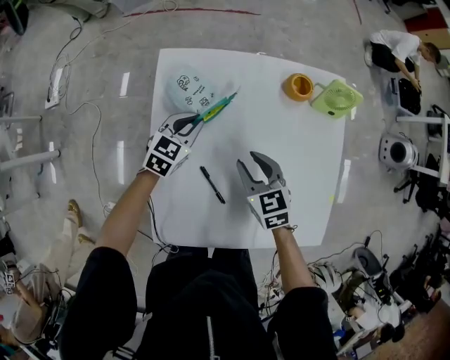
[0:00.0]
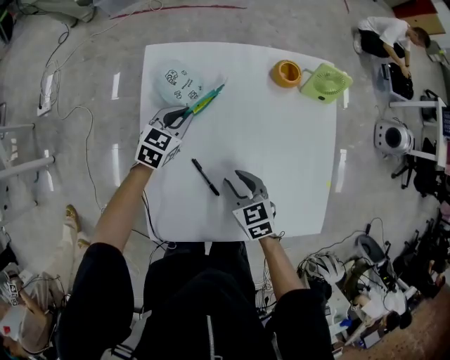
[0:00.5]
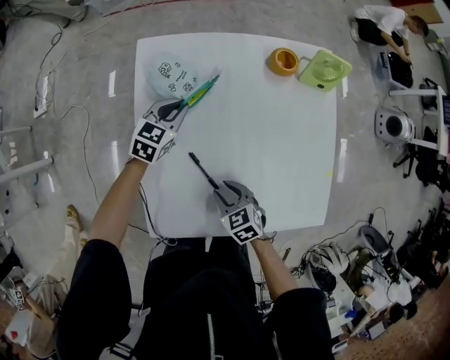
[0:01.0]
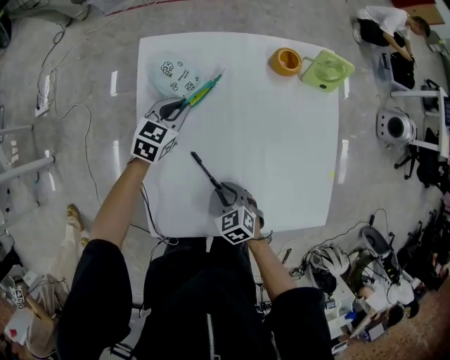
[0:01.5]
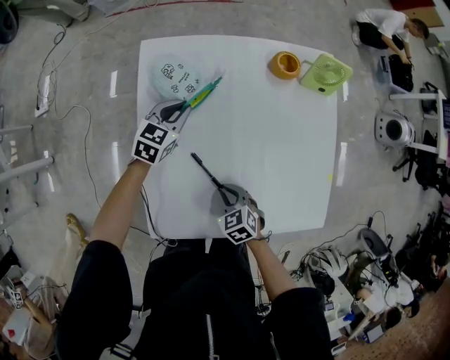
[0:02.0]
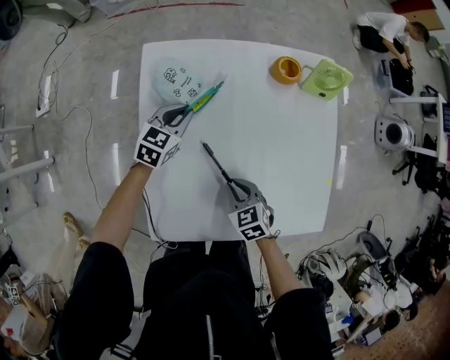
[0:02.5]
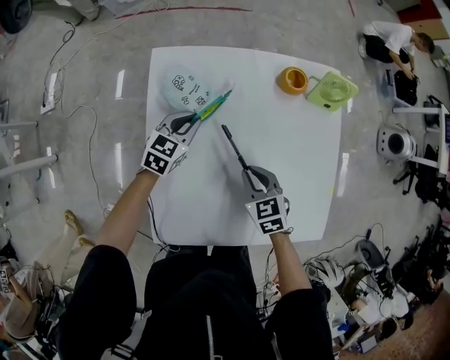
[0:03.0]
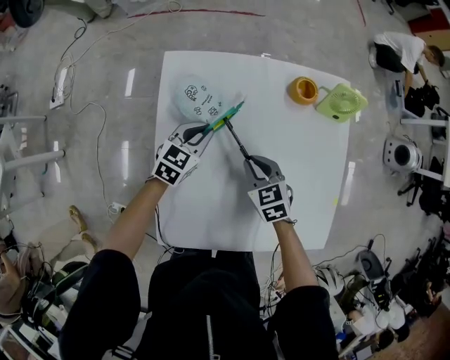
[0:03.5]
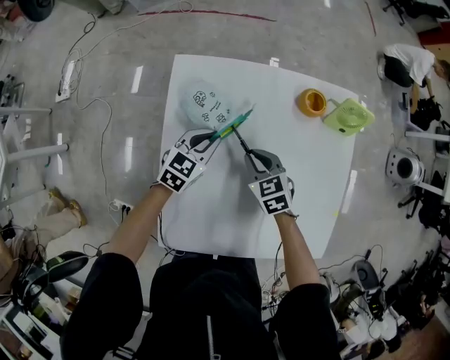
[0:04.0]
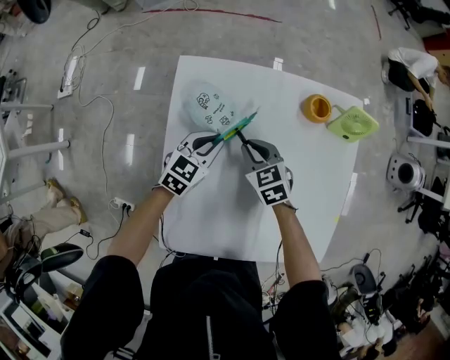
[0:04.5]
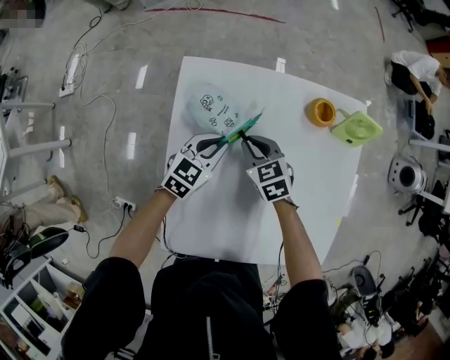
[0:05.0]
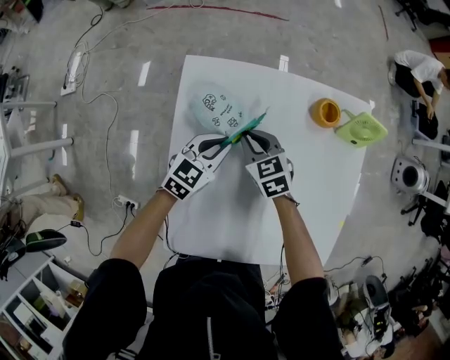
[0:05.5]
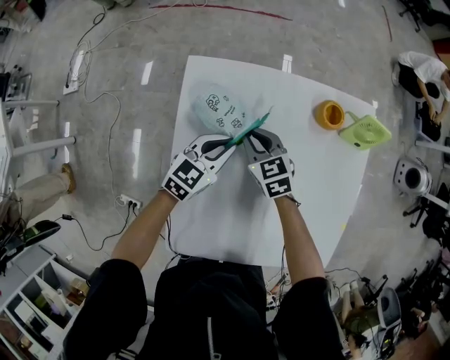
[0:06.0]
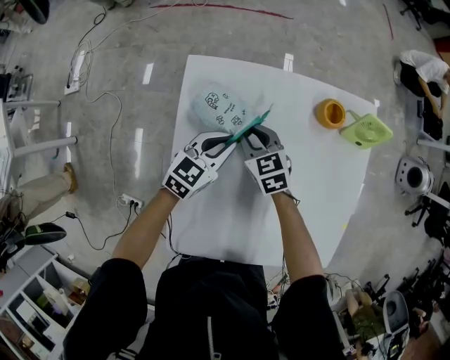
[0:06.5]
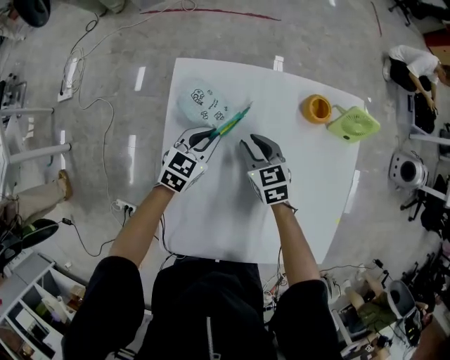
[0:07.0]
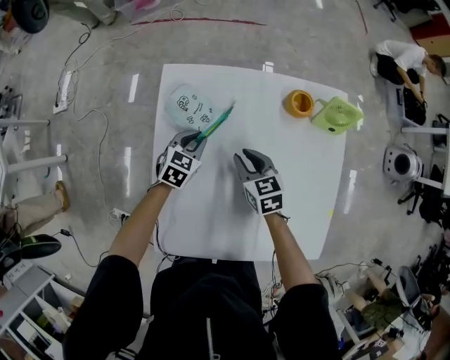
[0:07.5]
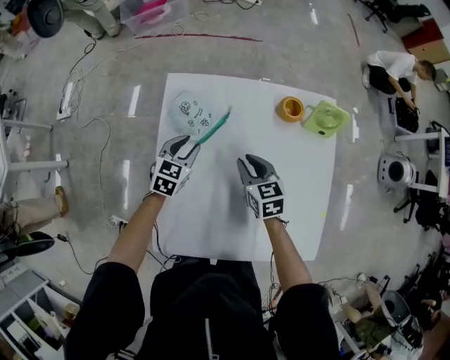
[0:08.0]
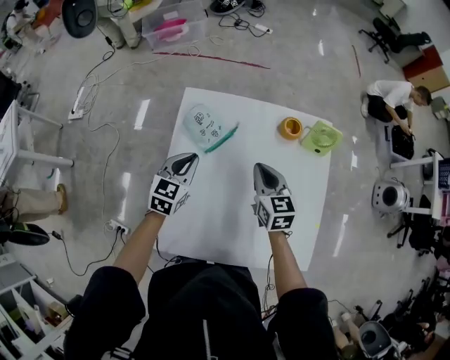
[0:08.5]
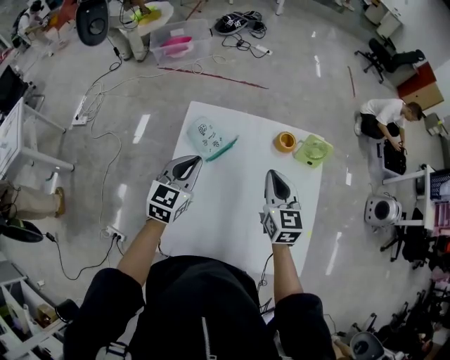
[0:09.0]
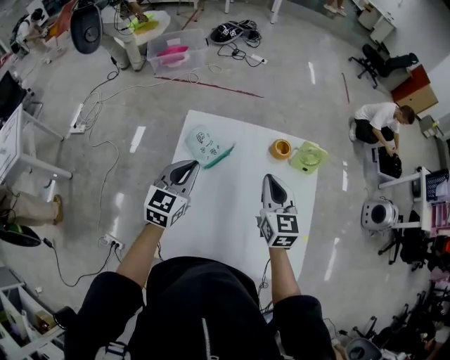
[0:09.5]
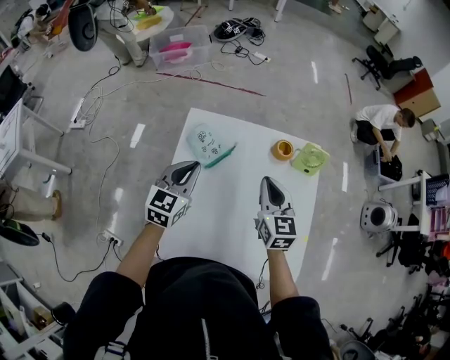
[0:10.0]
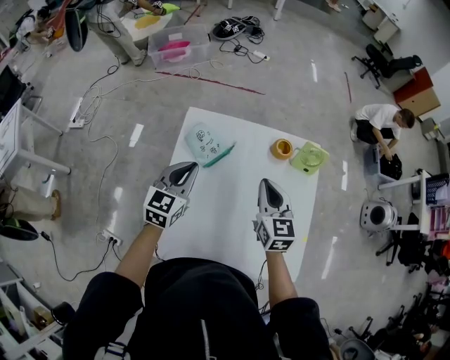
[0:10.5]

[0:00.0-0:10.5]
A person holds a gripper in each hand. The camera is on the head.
0.0 to 2.0 s: The right gripper heads backward and downward, covering approximately 20 cm, and closes up.
2.0 to 4.0 s: The right gripper heads forward, covering approximately 20 cm.
4.0 to 6.5 s: The right gripper goes some 10 cm forward and to the left.
6.5 to 8.5 s: The right gripper travels upward, to the right and backward by approximately 20 cm, turns by some 20 degrees, and closes its fingers, while the left gripper is displaced upward and backward by approximately 10 cm, rotates about 20 degrees, and opens and closes again.
8.5 to 10.5 s: Both grippers travel together upward, approximately 10 cm.

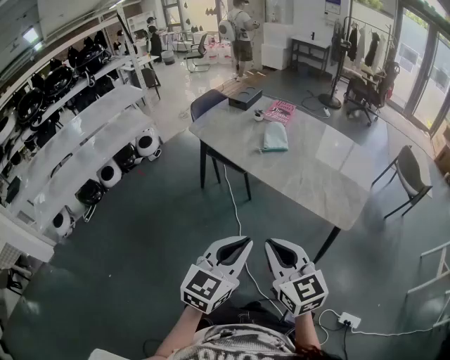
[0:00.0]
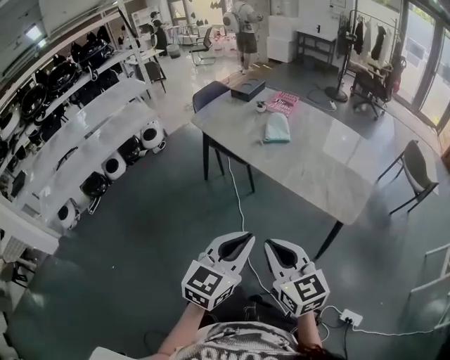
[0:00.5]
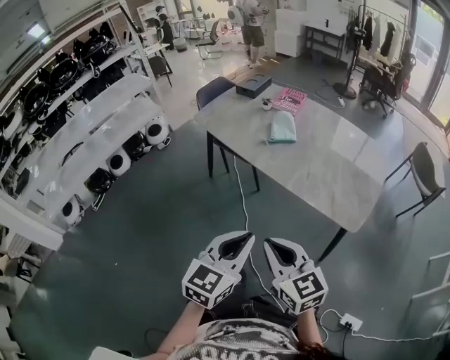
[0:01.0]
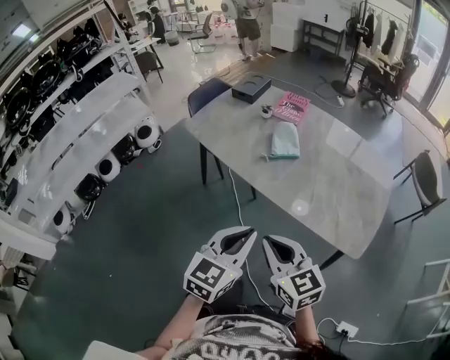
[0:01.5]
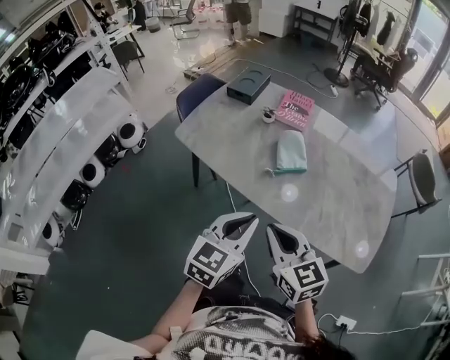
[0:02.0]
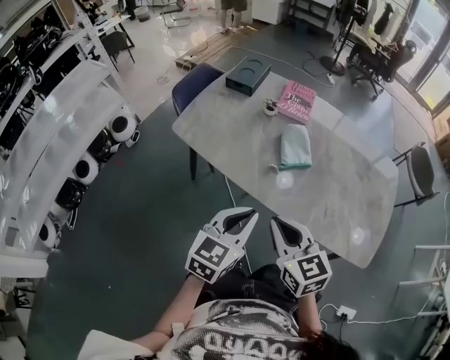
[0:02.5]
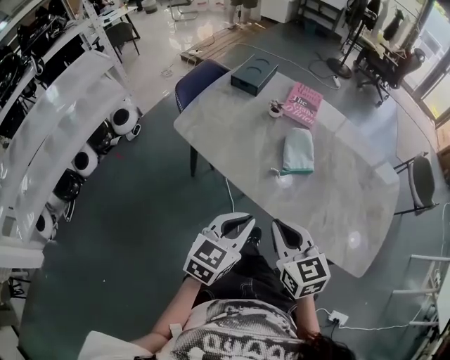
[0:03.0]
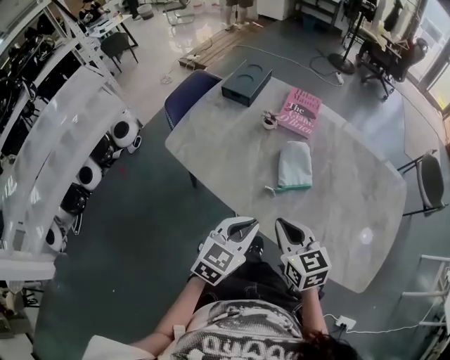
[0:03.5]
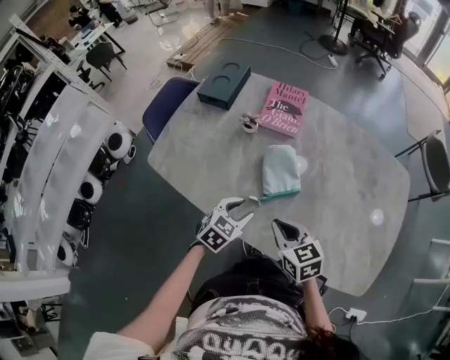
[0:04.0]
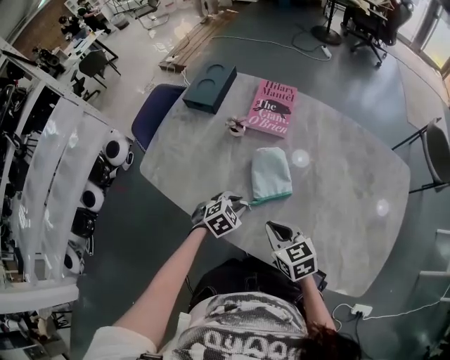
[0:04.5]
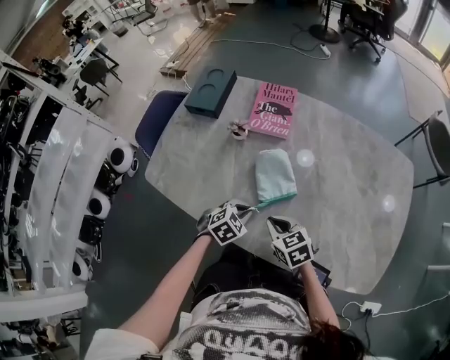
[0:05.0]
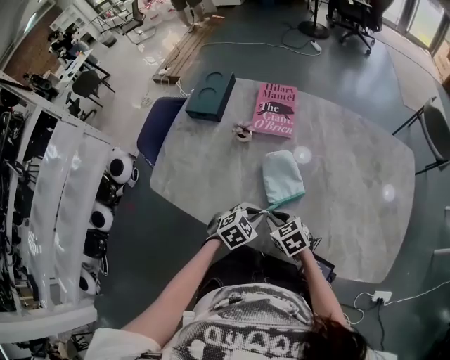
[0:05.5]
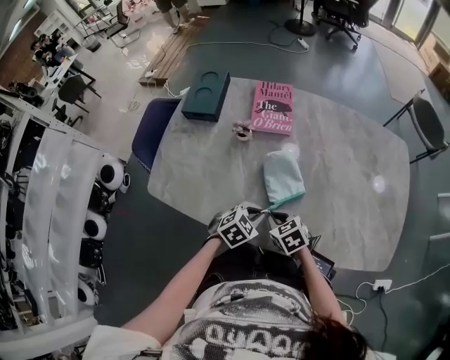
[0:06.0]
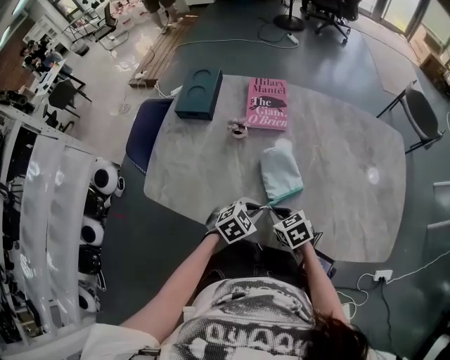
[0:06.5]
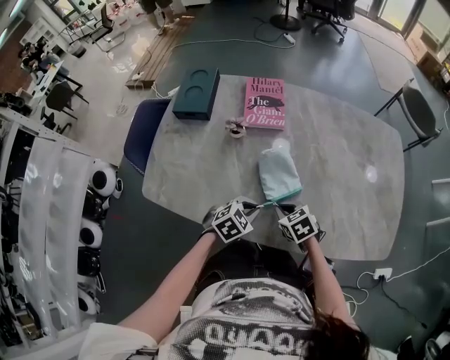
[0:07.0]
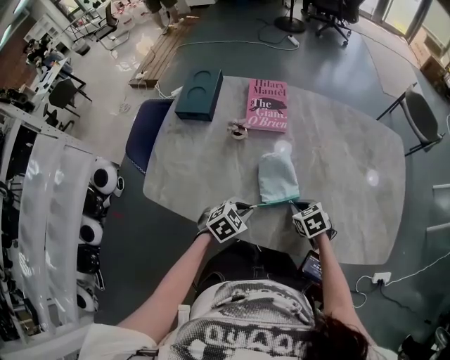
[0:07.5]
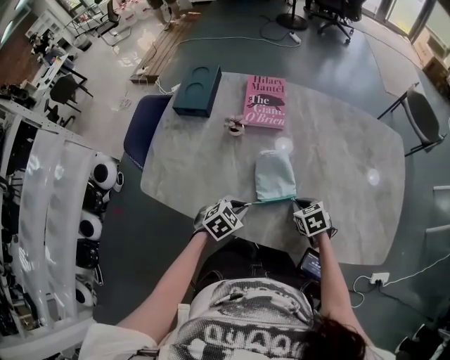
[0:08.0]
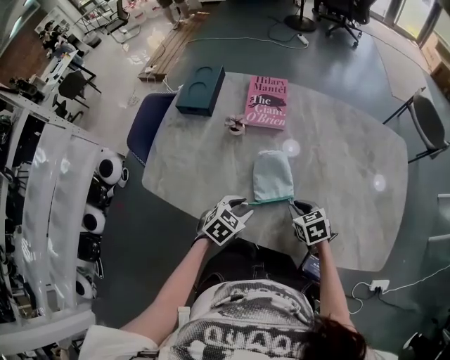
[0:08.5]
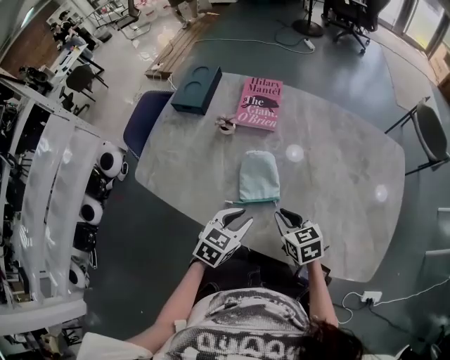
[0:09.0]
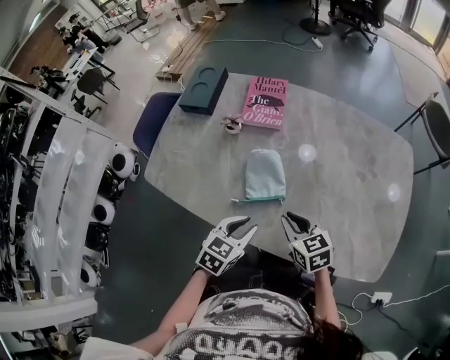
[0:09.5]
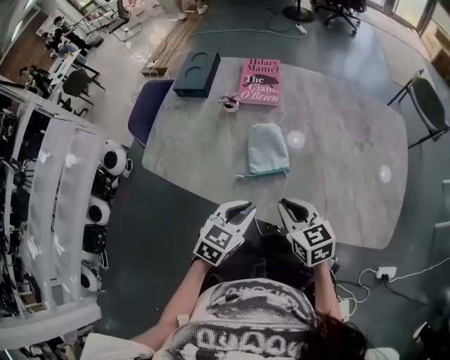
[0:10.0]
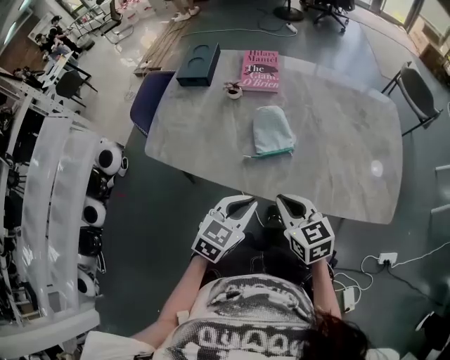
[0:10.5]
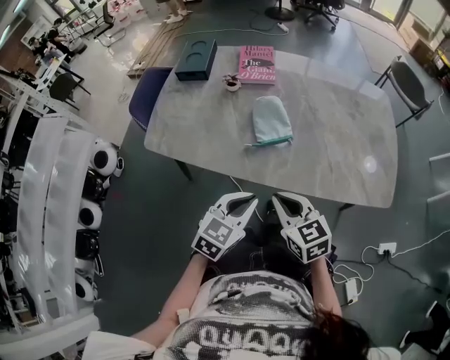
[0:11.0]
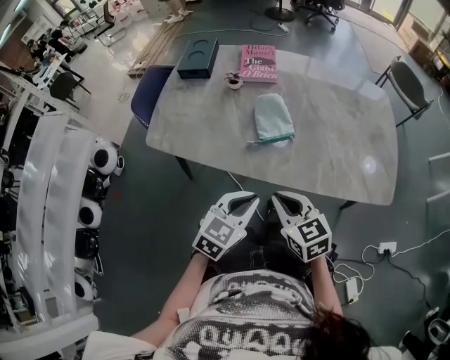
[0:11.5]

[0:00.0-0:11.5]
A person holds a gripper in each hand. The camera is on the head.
0.0 to 2.0 s: The two grippers go approximately 35 cm forward.
2.0 to 4.0 s: Both grippers move forward and downward, roughly 25 cm. The left gripper rotates roughly 30 degrees, and opens.
4.0 to 6.0 s: The right gripper travels downward and to the left by approximately 10 cm, while the left gripper swivels some 30 degrees, and closes up.
6.0 to 7.5 s: The right gripper moves to the right, some 10 cm.
7.5 to 9.5 s: The left gripper travels upward, to the right and backward by approximately 15 cm, turns by roughly 30 degrees, and opens up; the right gripper travels upward by approximately 10 cm, and turns by about 30 degrees.
9.5 to 11.5 s: The right gripper is displaced backward and to the left by roughly 20 cm, while the left gripper moves backward, to the left and upward, approximately 15 cm, and closes its fingers.

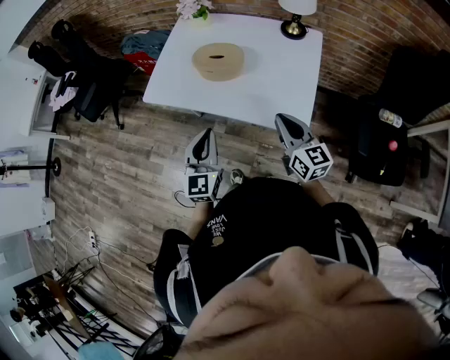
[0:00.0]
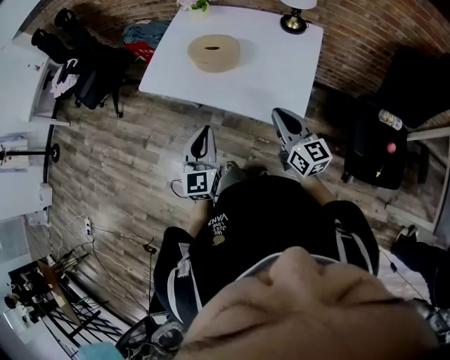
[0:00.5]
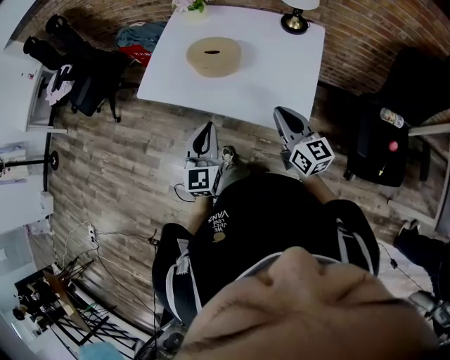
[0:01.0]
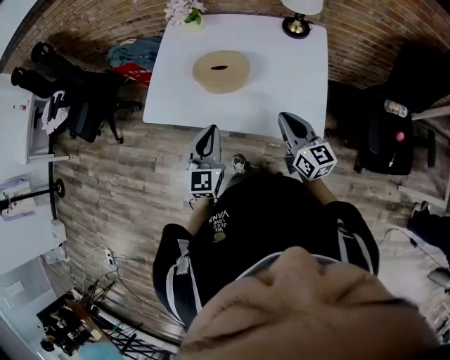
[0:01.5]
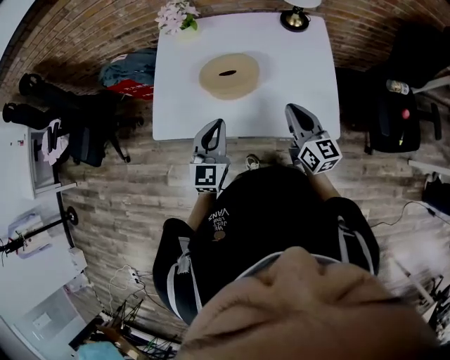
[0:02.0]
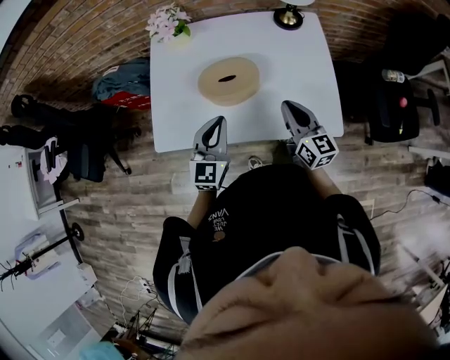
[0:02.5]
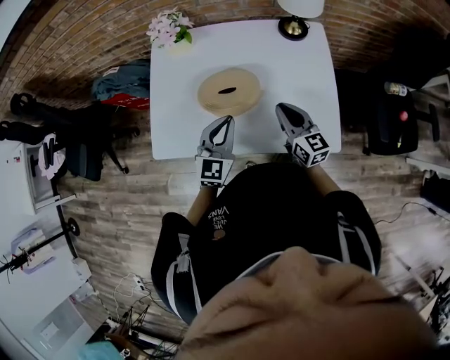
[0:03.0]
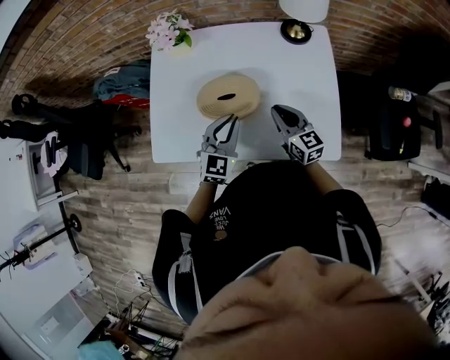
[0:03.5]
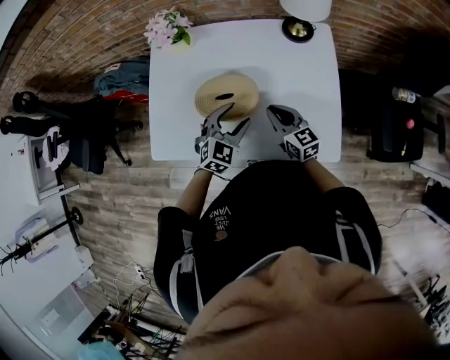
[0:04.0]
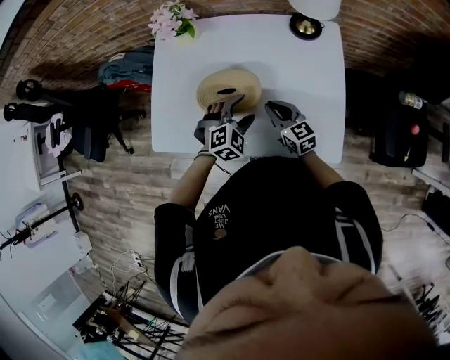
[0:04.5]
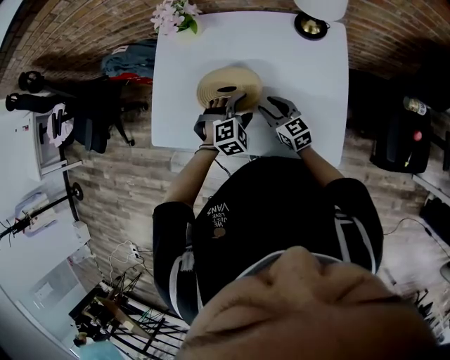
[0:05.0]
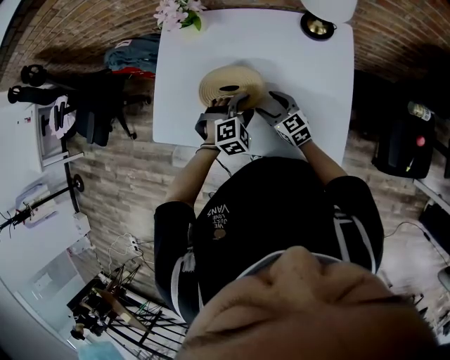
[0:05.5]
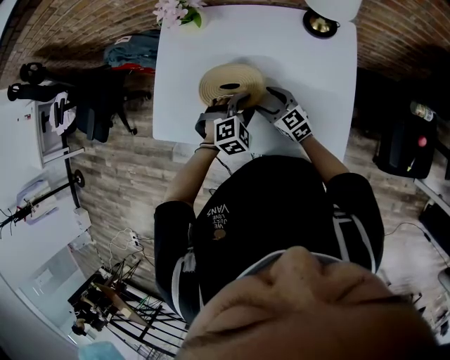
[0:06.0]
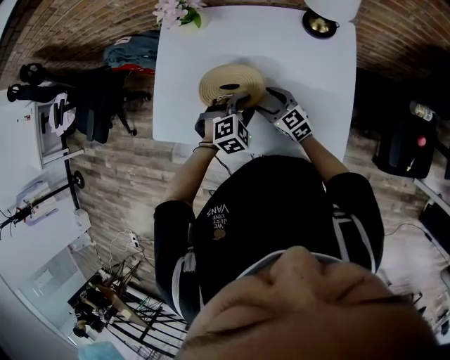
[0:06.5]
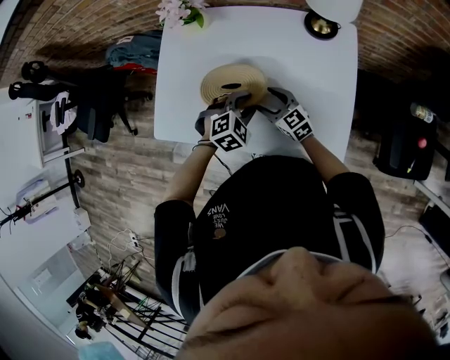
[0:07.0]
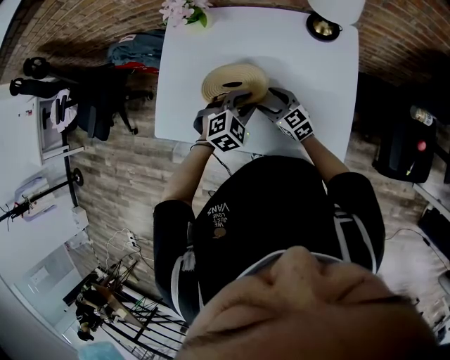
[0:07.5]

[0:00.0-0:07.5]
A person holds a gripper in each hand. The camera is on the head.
0.0 to 2.0 s: The right gripper heads forward and to the left, covering approximately 15 cm, and rotates some 20 degrees. The left gripper travels forward by roughly 20 cm, and changes its angle by roughly 20 degrees.
2.0 to 4.0 s: The right gripper heads forward and downward, covering some 15 cm. The left gripper goes roughly 20 cm forward, downward and to the right, turns by roughly 30 degrees, and opens.
4.0 to 5.5 s: The two grippers go about 5 cm downward. The right gripper changes its angle by roughly 20 degrees, and opens. The left gripper changes its angle by about 30 degrees.
5.5 to 7.5 s: The grippers make only small movements.
